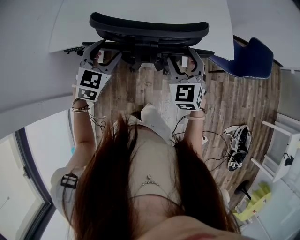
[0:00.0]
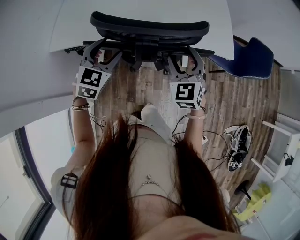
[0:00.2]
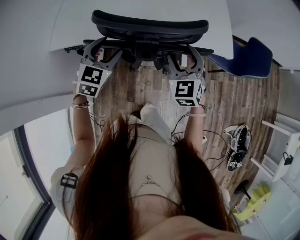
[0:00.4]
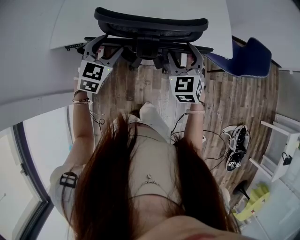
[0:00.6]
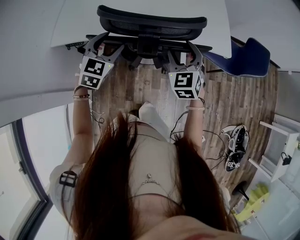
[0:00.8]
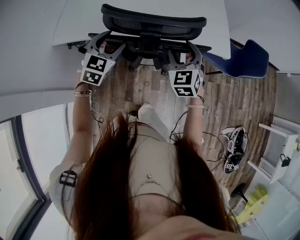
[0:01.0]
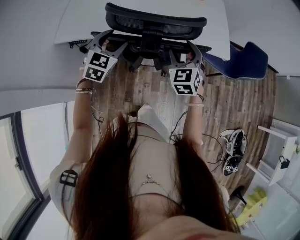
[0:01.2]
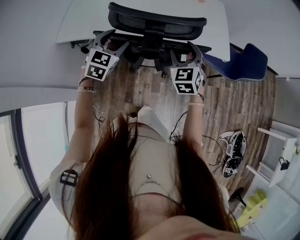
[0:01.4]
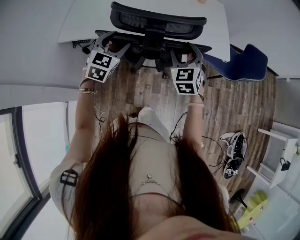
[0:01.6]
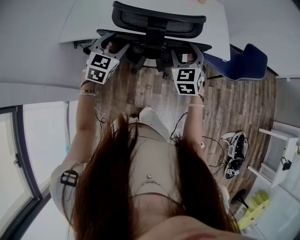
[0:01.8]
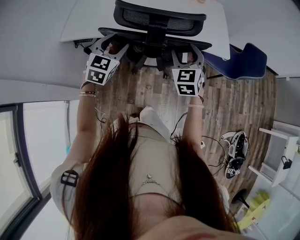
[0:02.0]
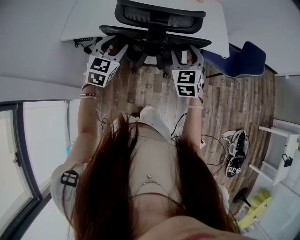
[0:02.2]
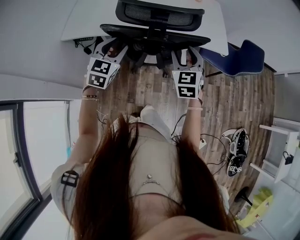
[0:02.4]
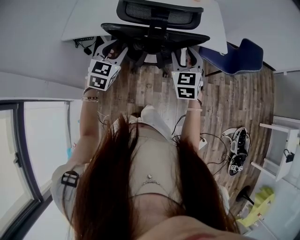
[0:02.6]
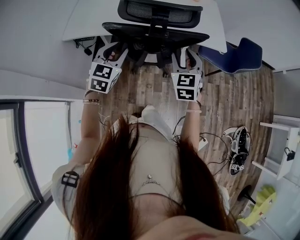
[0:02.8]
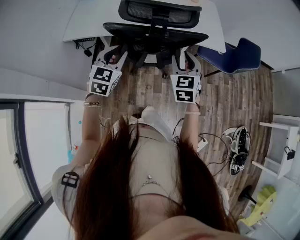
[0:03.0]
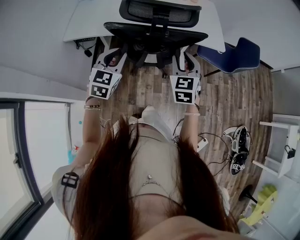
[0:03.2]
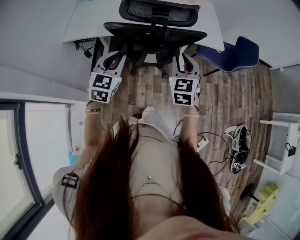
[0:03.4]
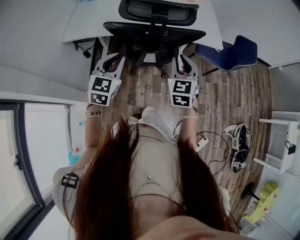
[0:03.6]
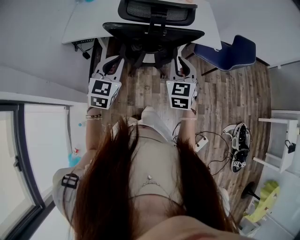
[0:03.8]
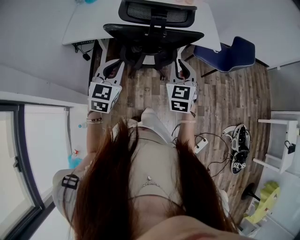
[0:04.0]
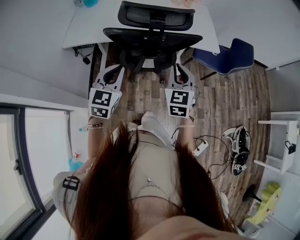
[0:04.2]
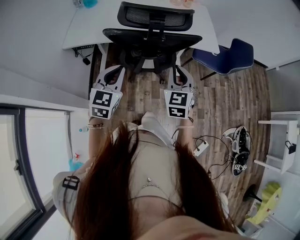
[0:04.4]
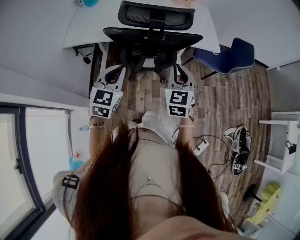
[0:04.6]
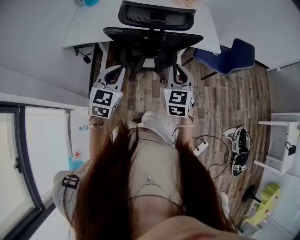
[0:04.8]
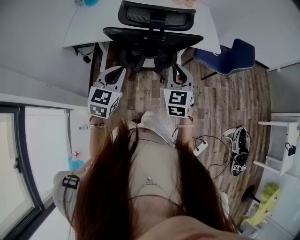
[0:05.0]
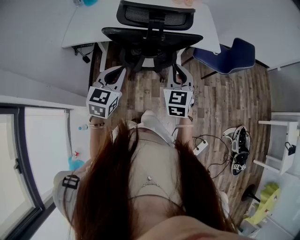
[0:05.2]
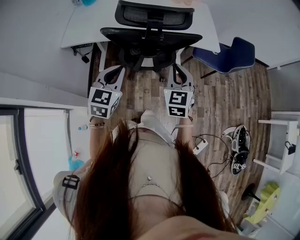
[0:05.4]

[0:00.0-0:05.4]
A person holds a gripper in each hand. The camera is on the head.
0:00.0 to 0:01.4: There are only small adjustments of the grippers.
0:01.4 to 0:02.8: Both grippers travel together backward, approximately 10 cm. The left gripper closes.
0:02.8 to 0:04.0: Both grippers travel together backward, some 10 cm. The right gripper closes. The left gripper closes.
0:04.0 to 0:05.4: The grippers stay close to where they were, moving slightly.

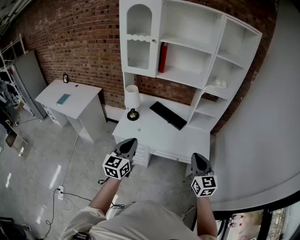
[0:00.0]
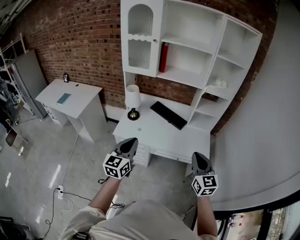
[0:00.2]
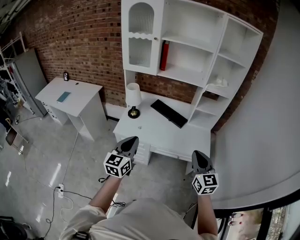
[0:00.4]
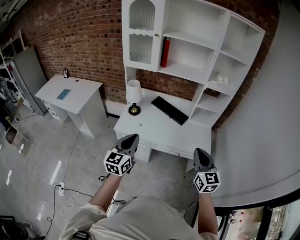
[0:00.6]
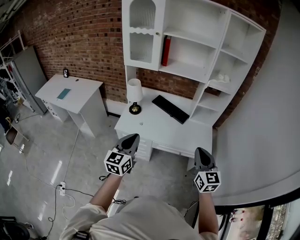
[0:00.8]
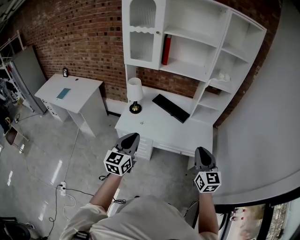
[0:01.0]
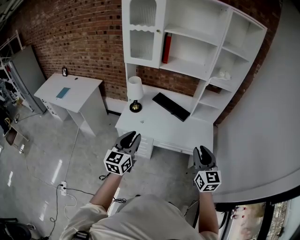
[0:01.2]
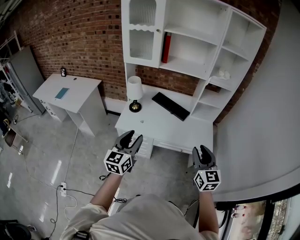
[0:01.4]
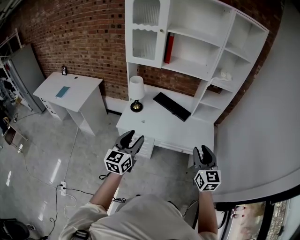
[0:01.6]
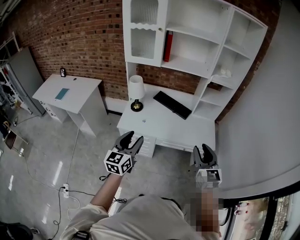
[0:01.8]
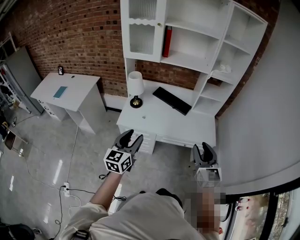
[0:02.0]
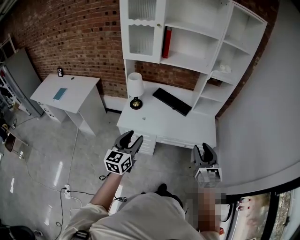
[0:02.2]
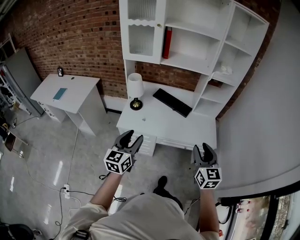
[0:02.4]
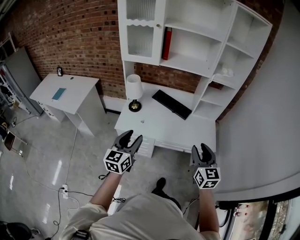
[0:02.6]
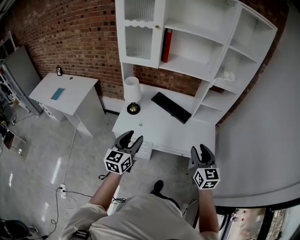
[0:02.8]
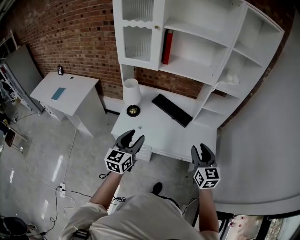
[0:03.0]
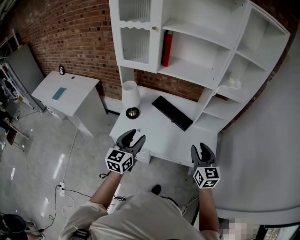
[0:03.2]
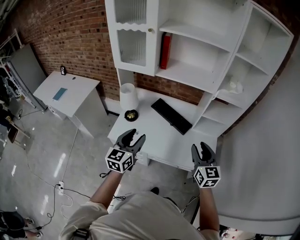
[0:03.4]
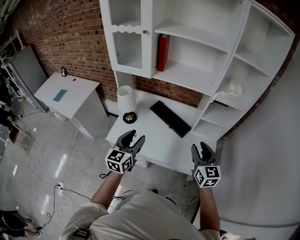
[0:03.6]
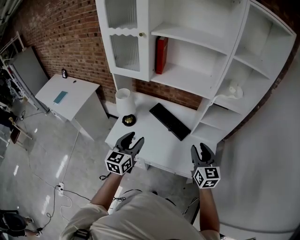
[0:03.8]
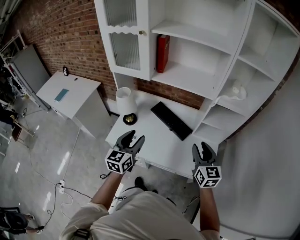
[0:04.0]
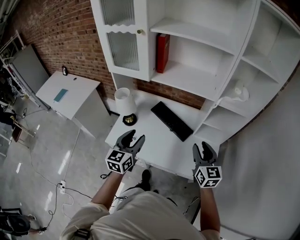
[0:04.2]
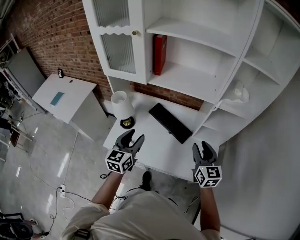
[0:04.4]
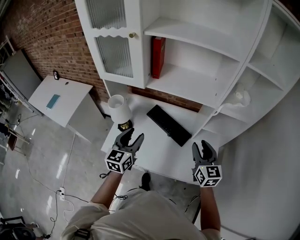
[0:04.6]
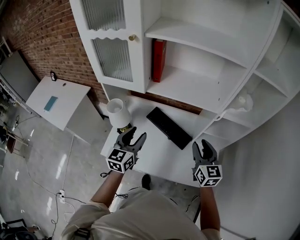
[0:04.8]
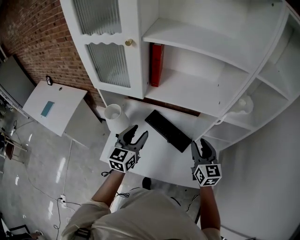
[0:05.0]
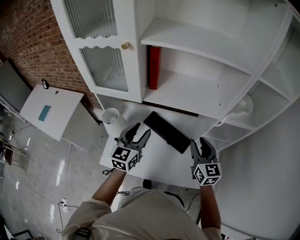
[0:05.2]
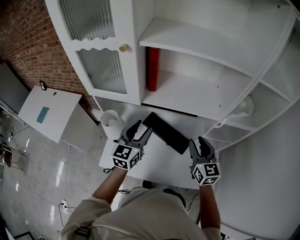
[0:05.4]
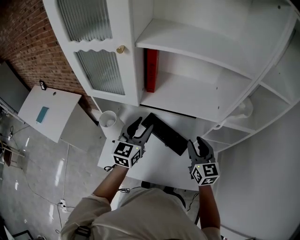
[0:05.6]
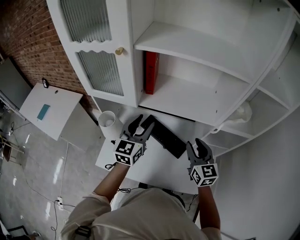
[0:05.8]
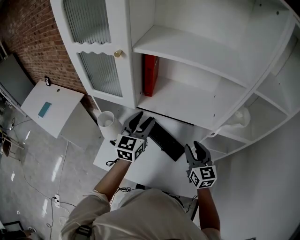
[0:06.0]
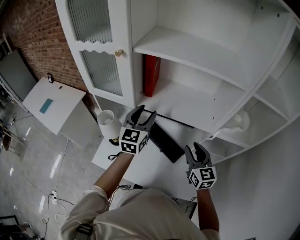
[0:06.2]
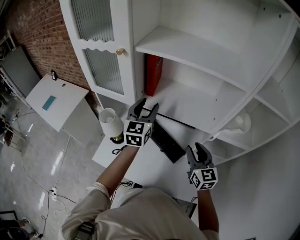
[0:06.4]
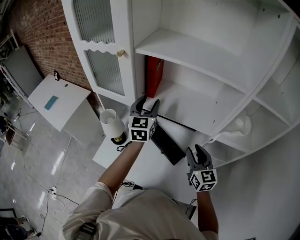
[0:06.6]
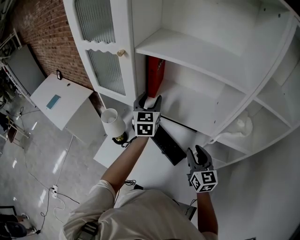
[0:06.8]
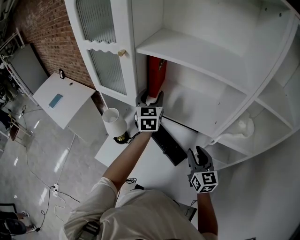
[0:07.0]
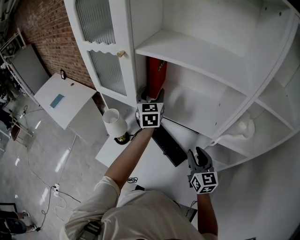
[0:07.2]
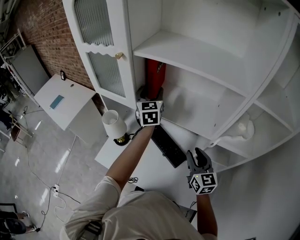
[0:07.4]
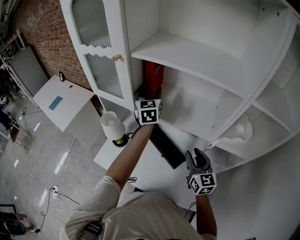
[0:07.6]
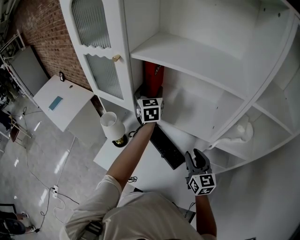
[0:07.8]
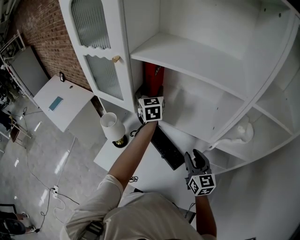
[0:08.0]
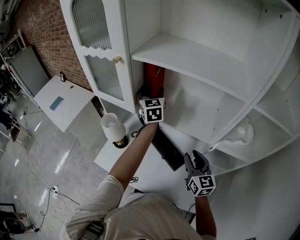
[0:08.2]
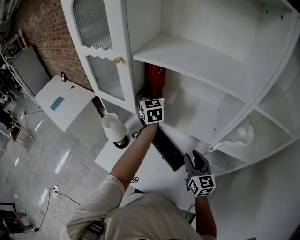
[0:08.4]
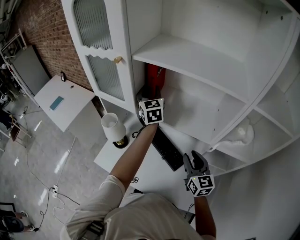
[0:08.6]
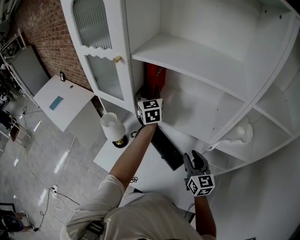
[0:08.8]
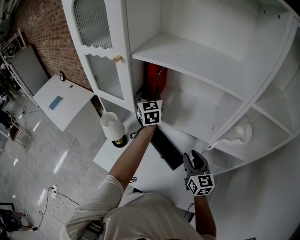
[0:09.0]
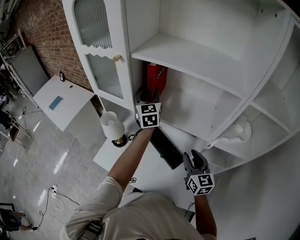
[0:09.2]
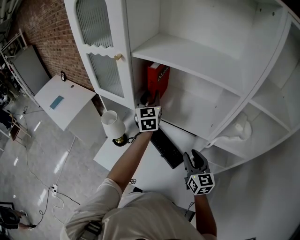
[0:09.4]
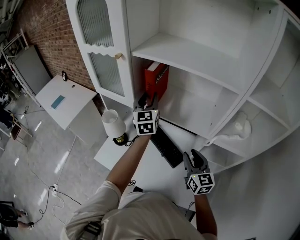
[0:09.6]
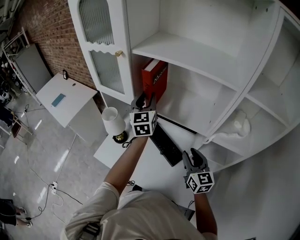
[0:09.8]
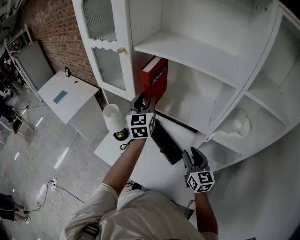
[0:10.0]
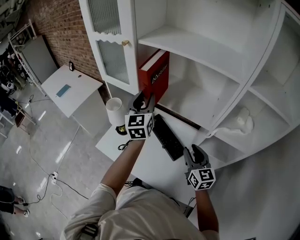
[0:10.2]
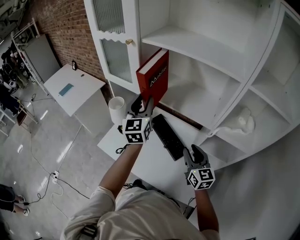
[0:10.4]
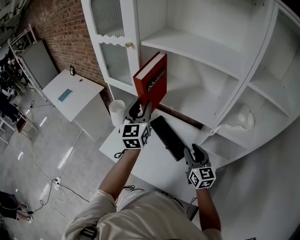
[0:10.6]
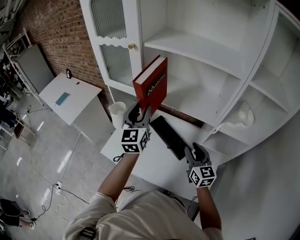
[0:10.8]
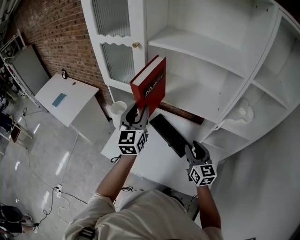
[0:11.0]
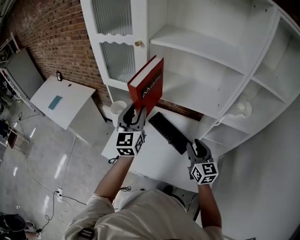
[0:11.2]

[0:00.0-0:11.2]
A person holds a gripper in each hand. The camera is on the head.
0:00.0 to 0:01.6: The right gripper opens its fingers, while the left gripper opens its fingers.
0:01.6 to 0:03.2: The two grippers go about 20 cm forward.
0:03.2 to 0:04.8: Both grippers travel together forward, about 25 cm.
0:04.8 to 0:06.4: The right gripper travels forward by some 10 cm; the left gripper moves forward and upward, some 20 cm.
0:06.4 to 0:08.0: The left gripper goes about 10 cm forward, and swivels about 20 degrees.
0:08.0 to 0:09.6: The left gripper travels backward by about 5 cm, and closes up.
0:09.6 to 0:11.2: The right gripper travels to the left by some 5 cm; the left gripper travels backward and to the left by about 20 cm.

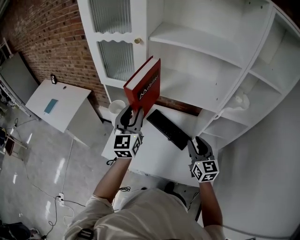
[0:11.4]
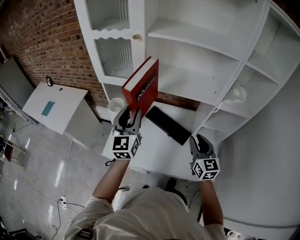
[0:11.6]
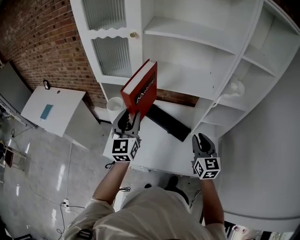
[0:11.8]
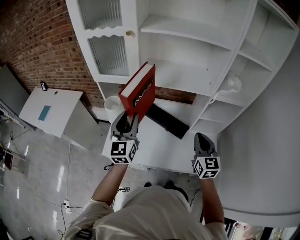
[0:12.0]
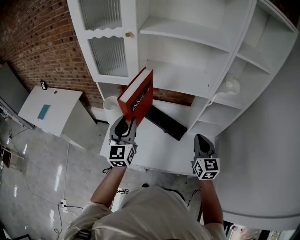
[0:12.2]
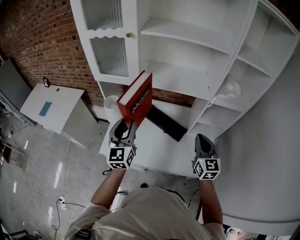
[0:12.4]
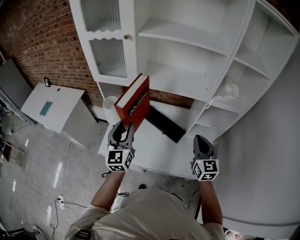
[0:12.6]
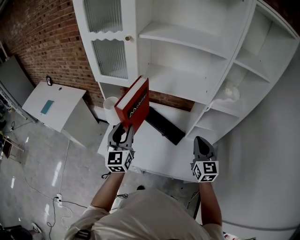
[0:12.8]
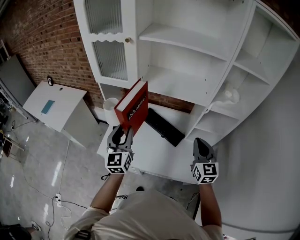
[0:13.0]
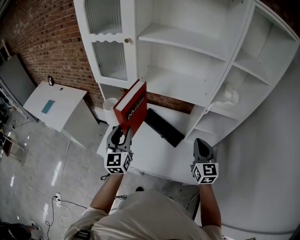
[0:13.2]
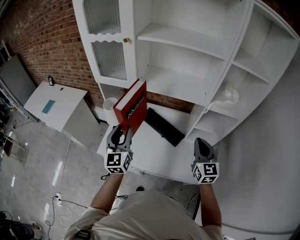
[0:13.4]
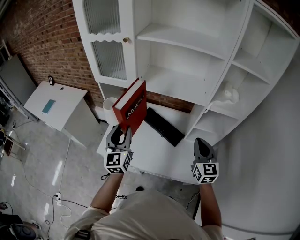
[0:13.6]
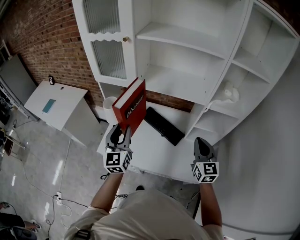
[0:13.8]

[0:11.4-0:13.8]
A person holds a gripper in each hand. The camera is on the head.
0:11.4 to 0:12.6: The right gripper moves backward, approximately 5 cm, and closes its fingers. Meanwhile the left gripper moves backward and downward, approximately 10 cm.
0:12.6 to 0:13.8: The grippers stay close to where they were, moving slightly.

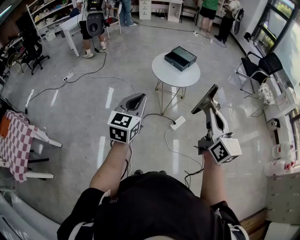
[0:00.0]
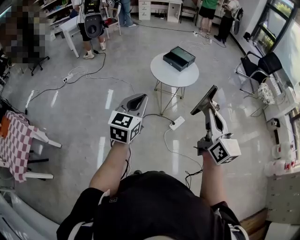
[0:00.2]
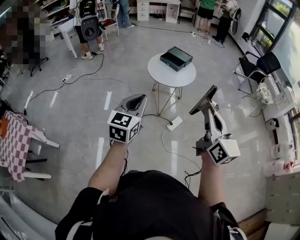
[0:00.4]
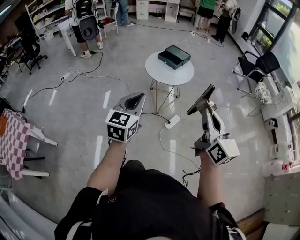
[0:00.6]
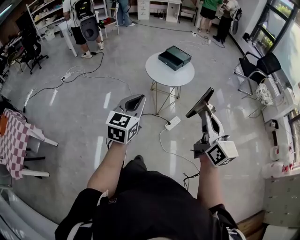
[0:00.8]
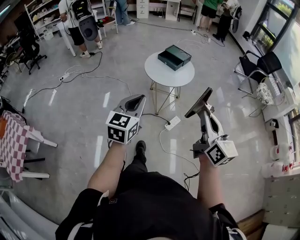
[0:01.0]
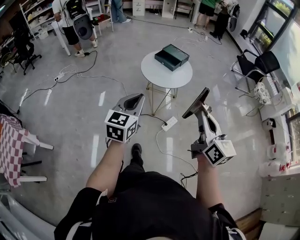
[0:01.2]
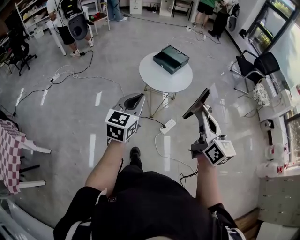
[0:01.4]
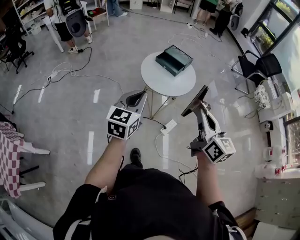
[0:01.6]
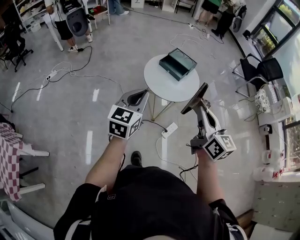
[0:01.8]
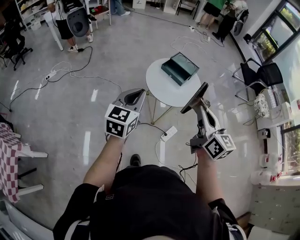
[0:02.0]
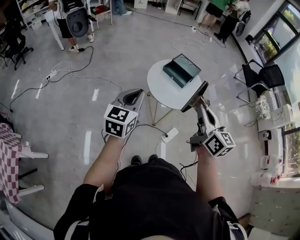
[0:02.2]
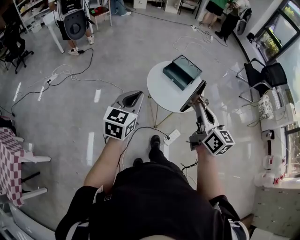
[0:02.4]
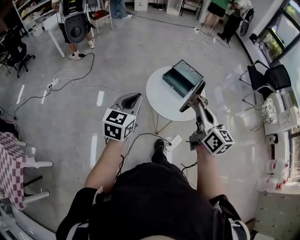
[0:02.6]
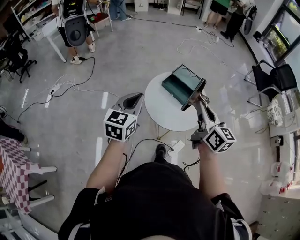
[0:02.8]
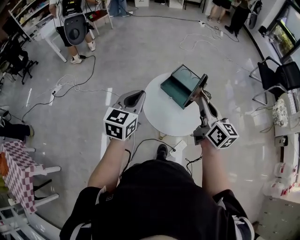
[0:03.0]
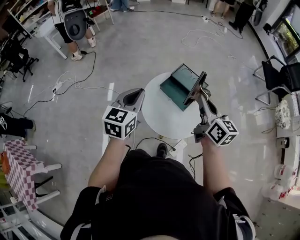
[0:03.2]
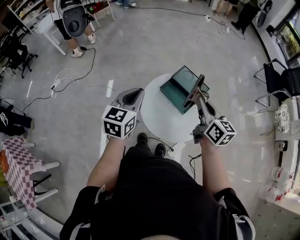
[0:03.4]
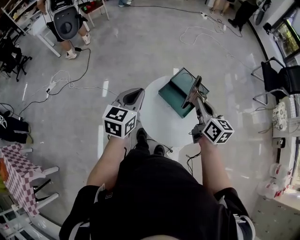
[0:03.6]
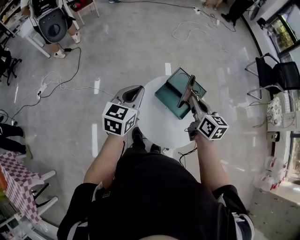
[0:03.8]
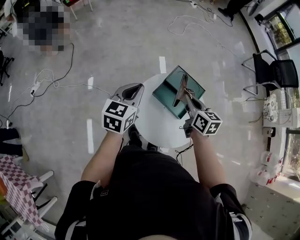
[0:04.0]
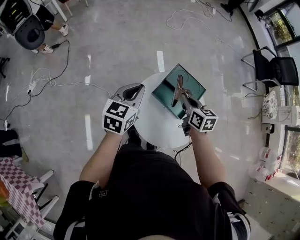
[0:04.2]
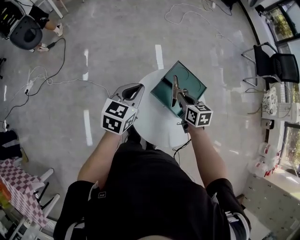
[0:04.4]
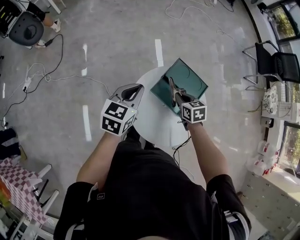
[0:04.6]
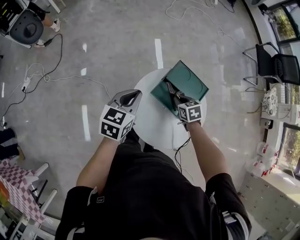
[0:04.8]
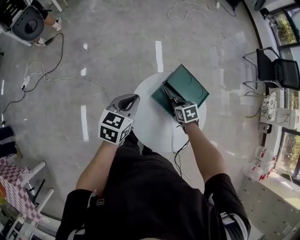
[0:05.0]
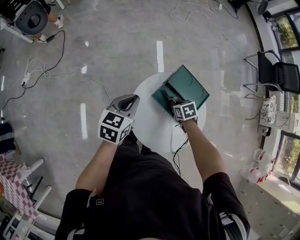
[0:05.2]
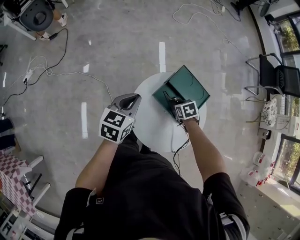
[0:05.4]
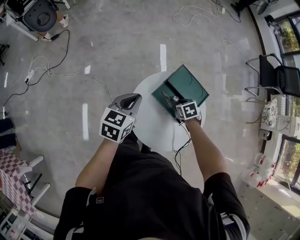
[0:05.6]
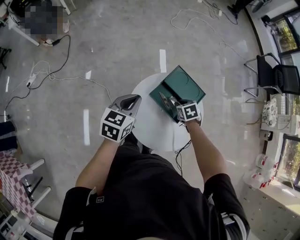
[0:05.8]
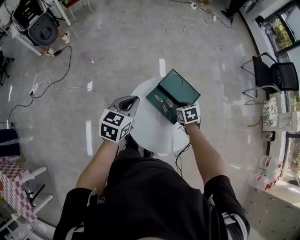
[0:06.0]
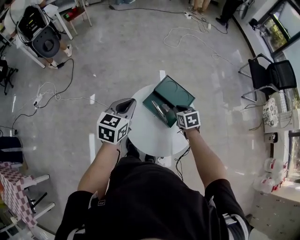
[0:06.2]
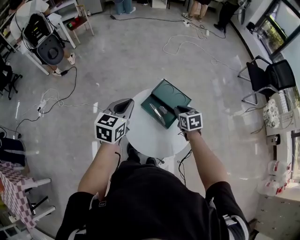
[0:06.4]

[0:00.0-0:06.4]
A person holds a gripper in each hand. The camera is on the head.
0:00.0 to 0:01.6: Both grippers travel together forward, some 20 cm.
0:01.6 to 0:03.2: Both grippers travel together forward, about 40 cm.
0:03.2 to 0:04.8: The right gripper shifts about 30 cm downward, and tips its fingers downward by about 50 degrees. The left gripper moves downward and forward, roughly 20 cm.
0:04.8 to 0:06.4: The right gripper goes roughly 15 cm upward and to the right. The left gripper heads upward, backward and to the right, covering roughly 15 cm.
